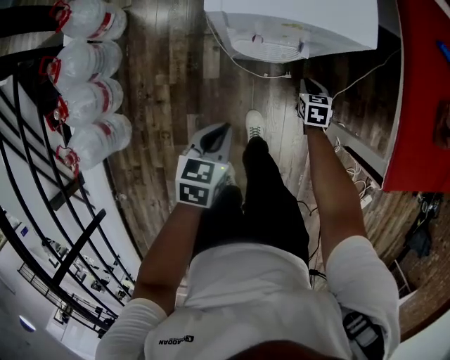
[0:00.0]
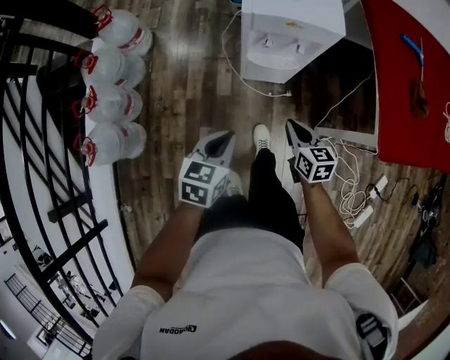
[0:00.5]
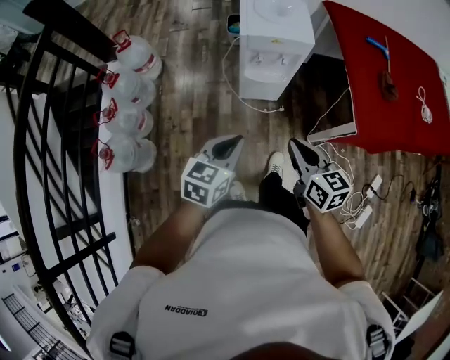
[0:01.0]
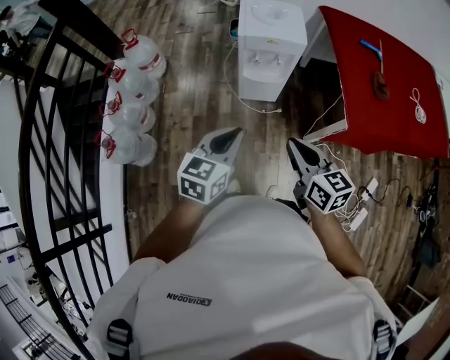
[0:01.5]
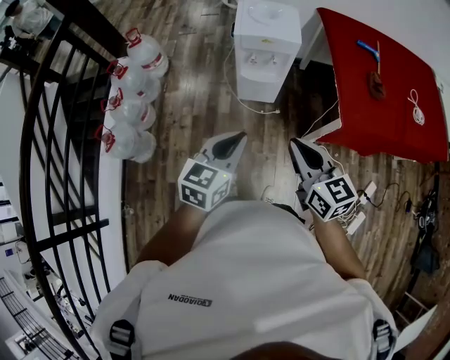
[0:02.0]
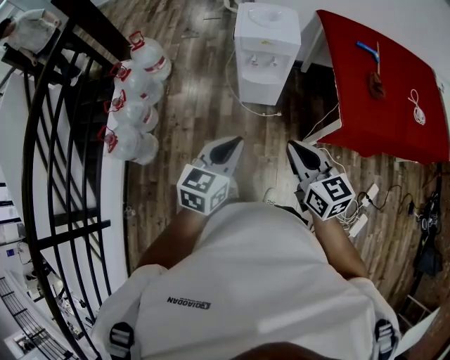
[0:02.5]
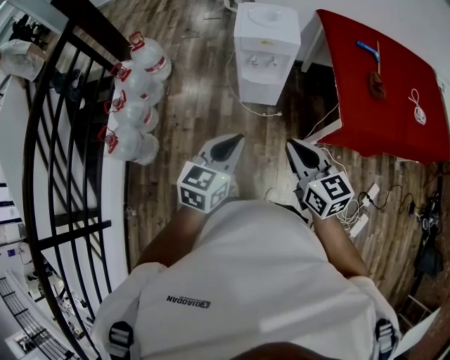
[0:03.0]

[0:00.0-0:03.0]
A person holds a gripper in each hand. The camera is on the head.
0.0 to 1.5 s: The right gripper shifts about 60 cm upward and backward, and angles its fingers upward, by about 40 degrees. Meanwhile the left gripper shifts approximately 40 cm upward and backward, and turns by about 30 degrees.
1.5 to 3.0 s: The right gripper moves roughly 5 cm, while the left gripper is displaced backward by roughly 5 cm.

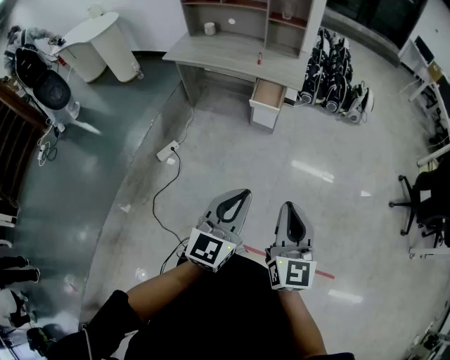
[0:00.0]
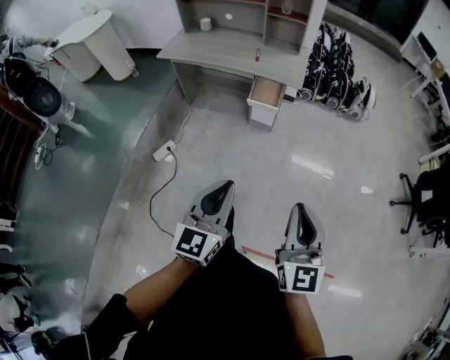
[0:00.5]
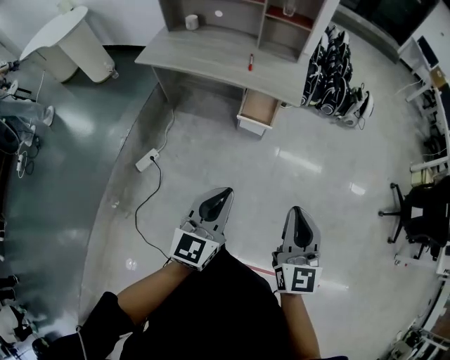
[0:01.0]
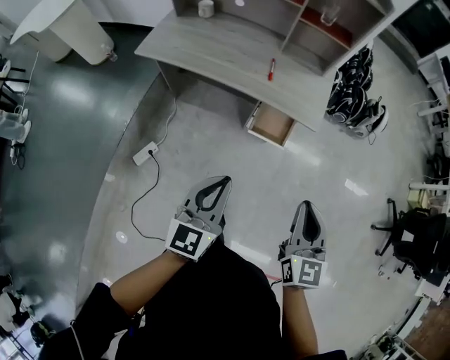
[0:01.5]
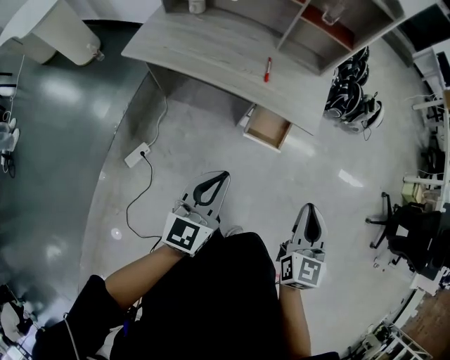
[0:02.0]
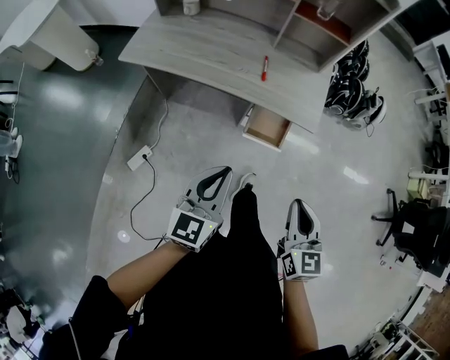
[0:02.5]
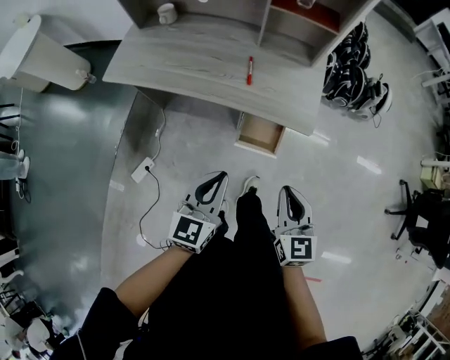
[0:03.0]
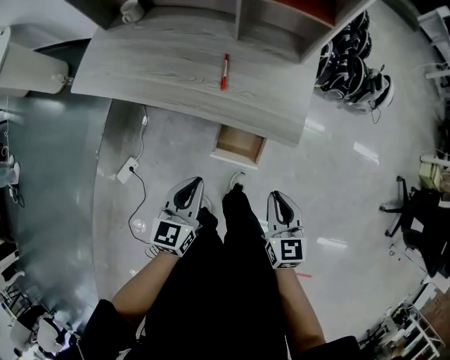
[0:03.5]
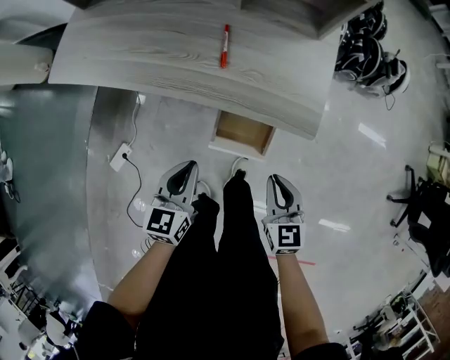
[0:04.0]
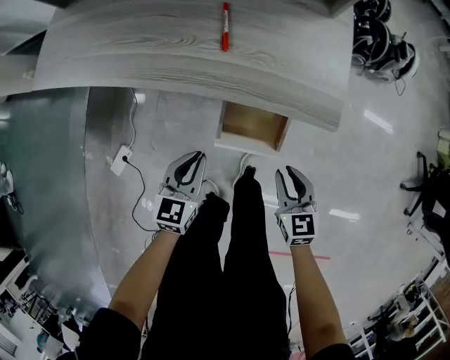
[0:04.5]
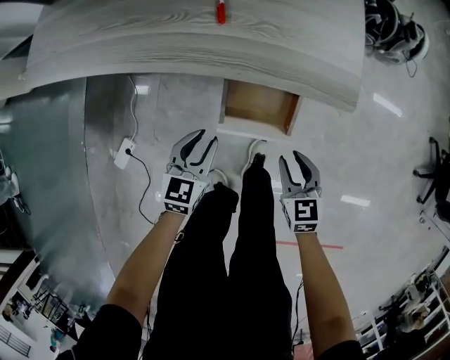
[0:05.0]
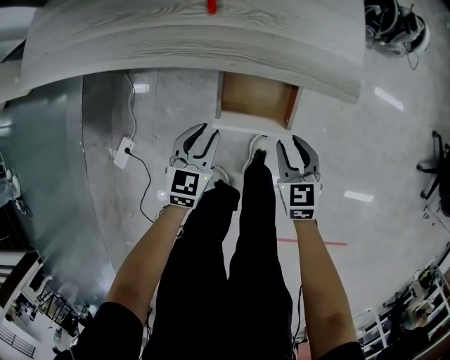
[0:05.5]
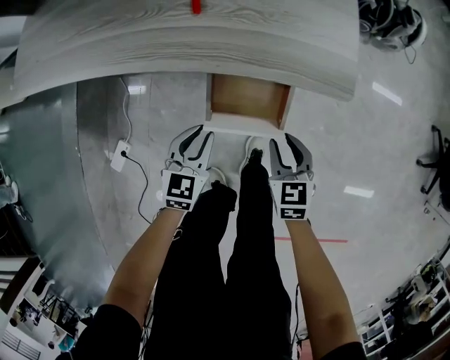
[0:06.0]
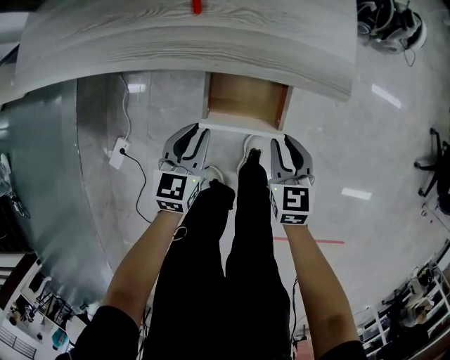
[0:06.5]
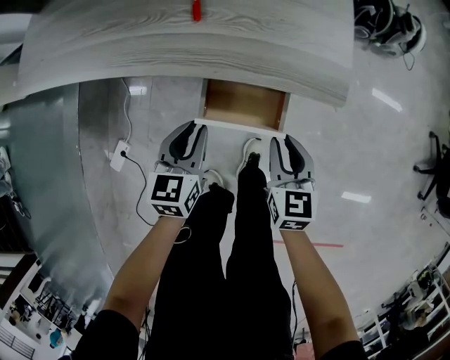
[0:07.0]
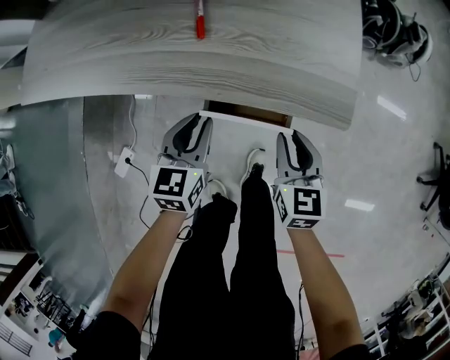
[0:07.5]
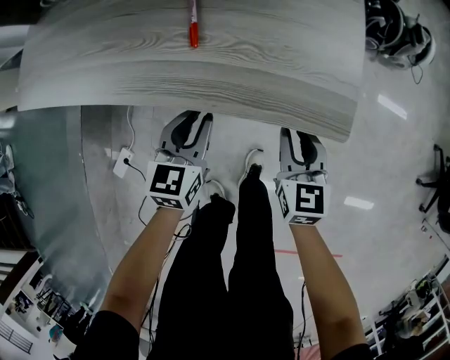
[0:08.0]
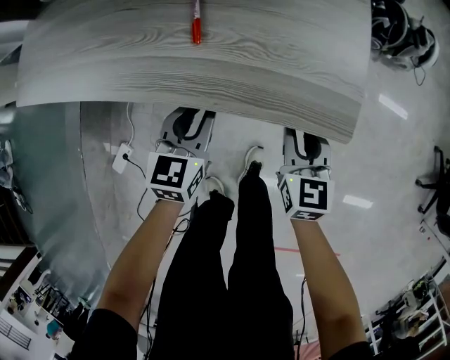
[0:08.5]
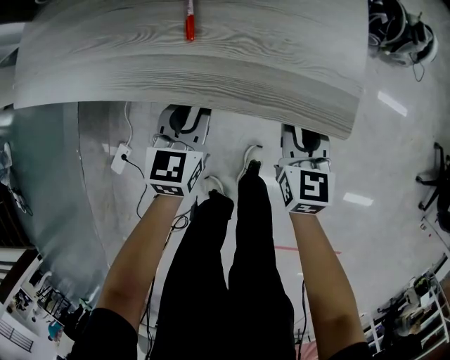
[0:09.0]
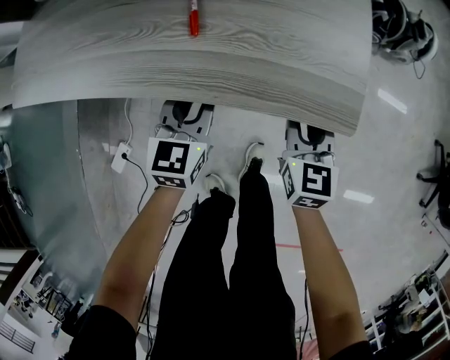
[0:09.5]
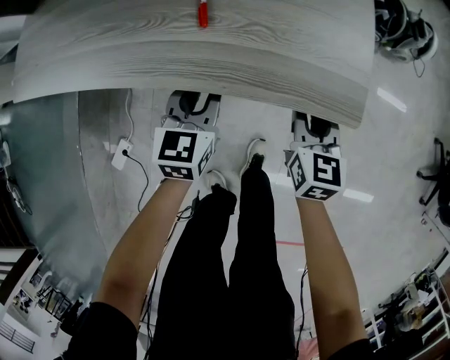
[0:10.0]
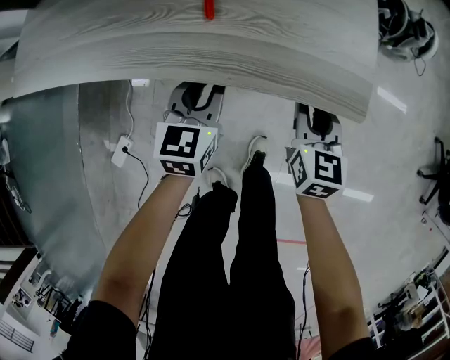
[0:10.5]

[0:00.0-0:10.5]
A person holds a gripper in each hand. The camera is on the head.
0.0 to 2.0 s: The pair of grippers is taken forward, about 50 cm. The right gripper turns by some 20 degrees.
2.0 to 4.0 s: Both grippers travel together downward and forward, about 30 cm. The right gripper changes its angle by some 20 degrees. Meanwhile the left gripper changes its angle by some 20 degrees.
4.0 to 6.5 s: Both grippers move downward, approximately 15 cm.
6.5 to 8.5 s: The two grippers go roughly 15 cm forward.
8.5 to 10.5 s: The grippers move only a little.

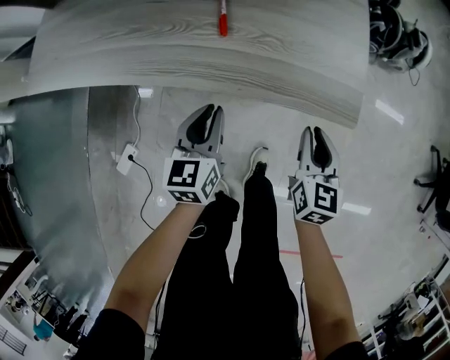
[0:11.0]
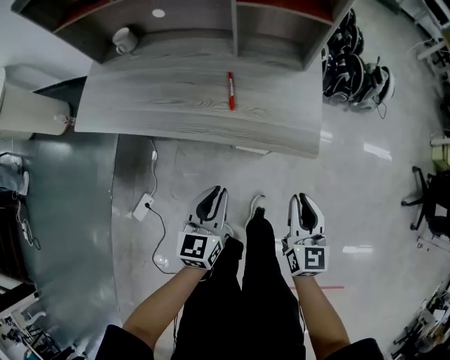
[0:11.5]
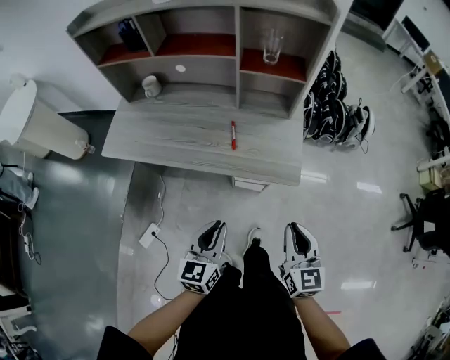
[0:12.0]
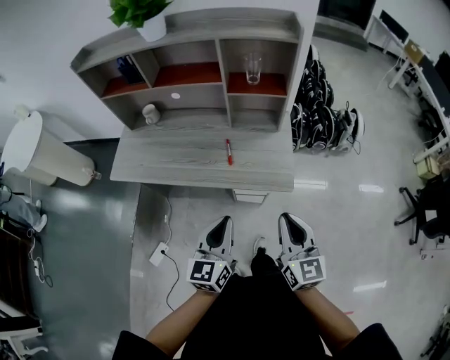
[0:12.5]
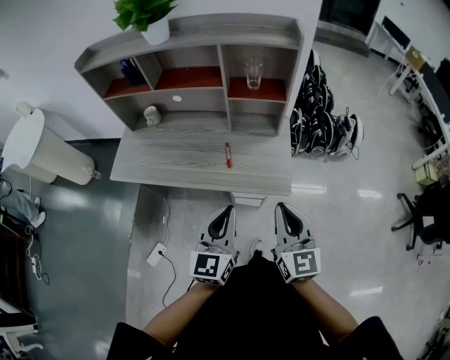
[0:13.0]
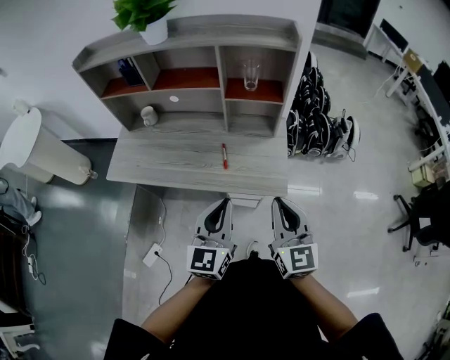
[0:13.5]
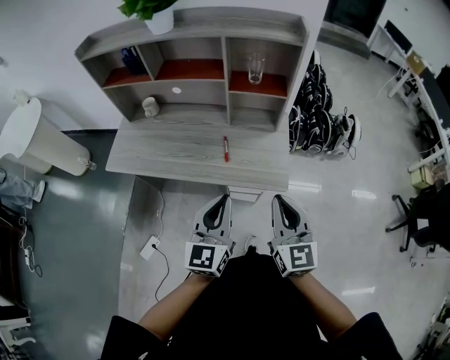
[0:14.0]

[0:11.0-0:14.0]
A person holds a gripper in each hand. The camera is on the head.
11.0 to 12.5 s: The grippers both shift upward by about 40 cm. The right gripper swivels approximately 30 degrees.
12.5 to 14.0 s: The right gripper moves roughly 5 cm. Meanwhile the left gripper moves upward, about 5 cm.

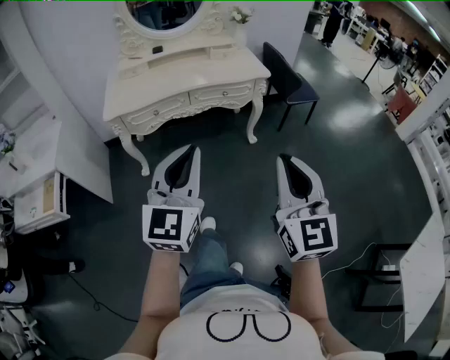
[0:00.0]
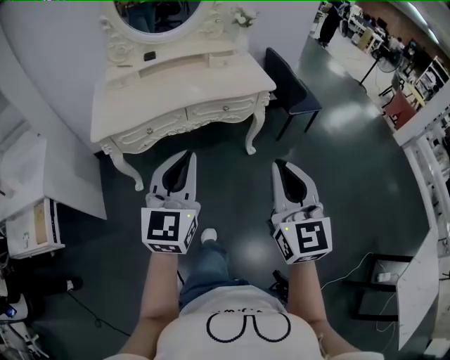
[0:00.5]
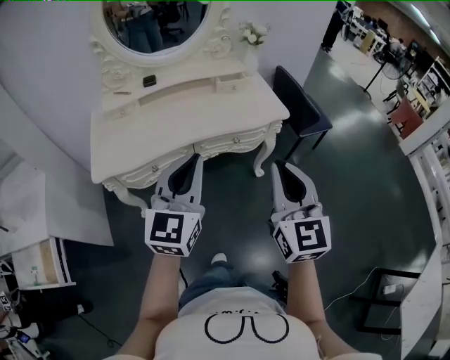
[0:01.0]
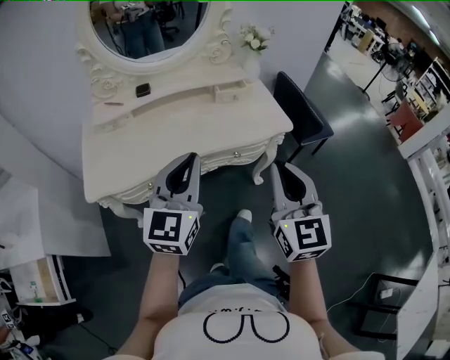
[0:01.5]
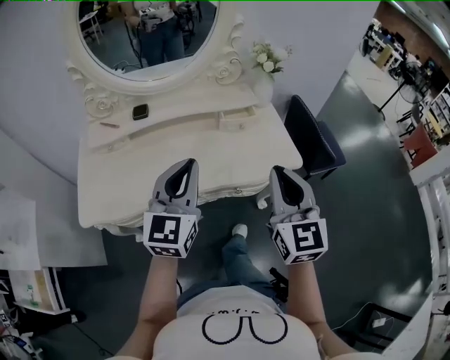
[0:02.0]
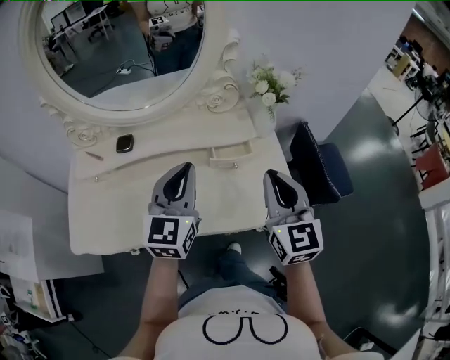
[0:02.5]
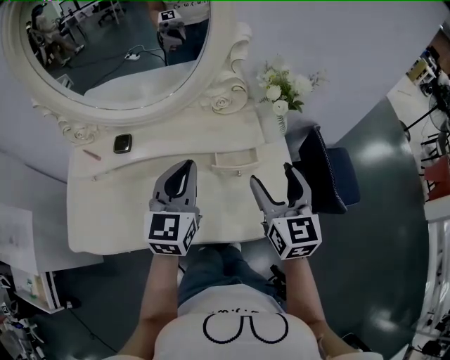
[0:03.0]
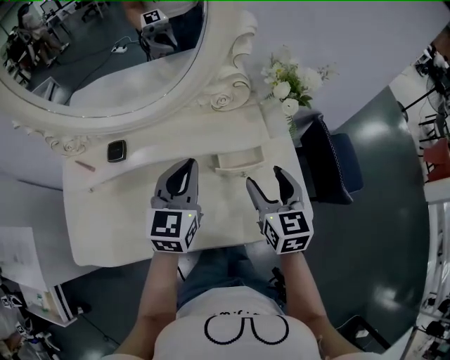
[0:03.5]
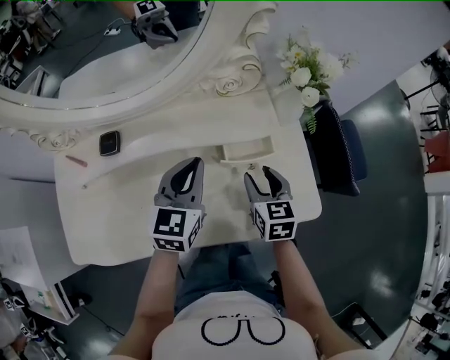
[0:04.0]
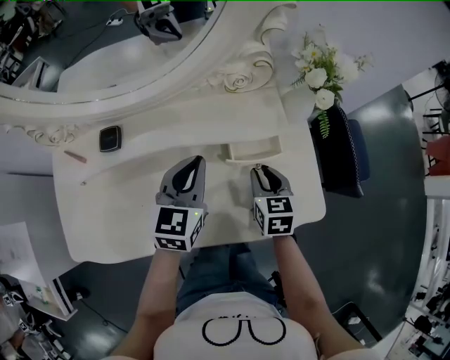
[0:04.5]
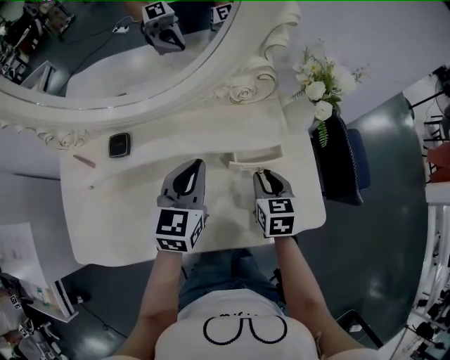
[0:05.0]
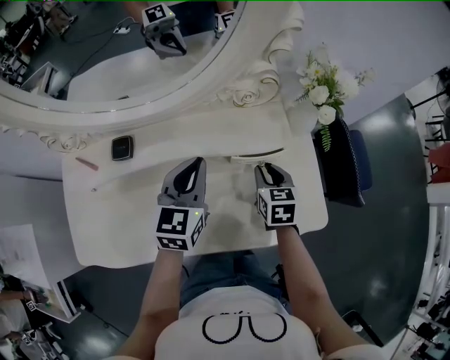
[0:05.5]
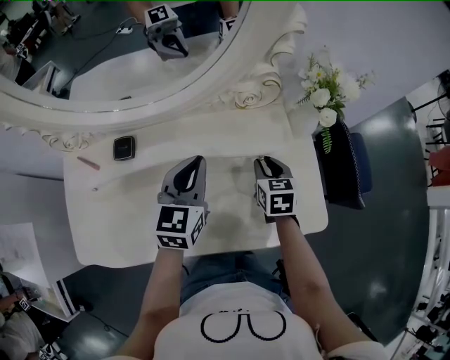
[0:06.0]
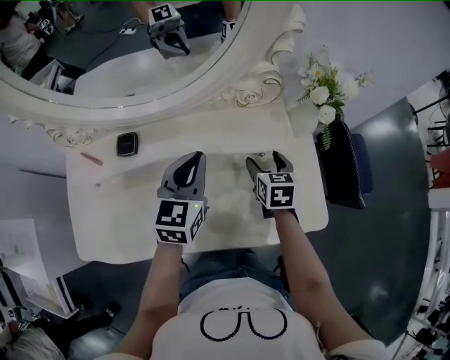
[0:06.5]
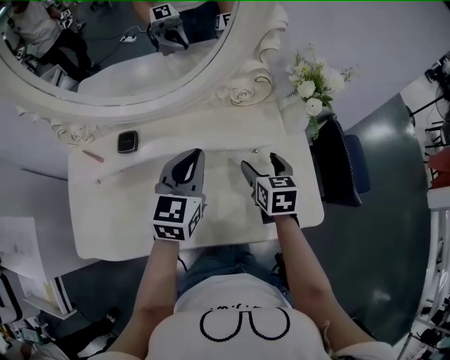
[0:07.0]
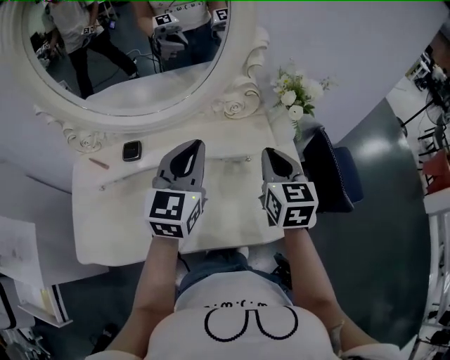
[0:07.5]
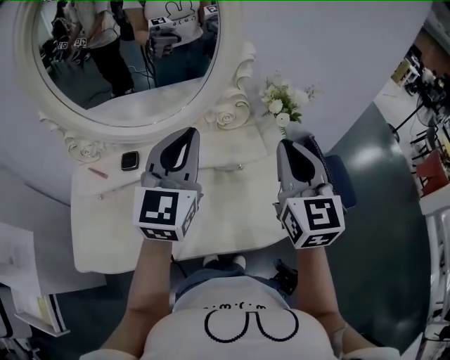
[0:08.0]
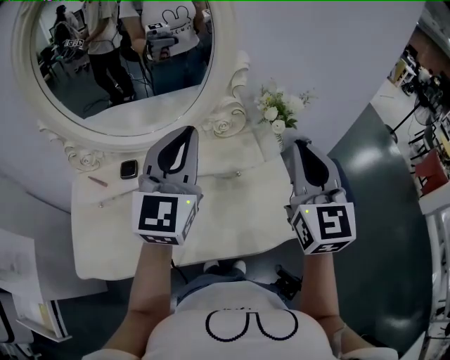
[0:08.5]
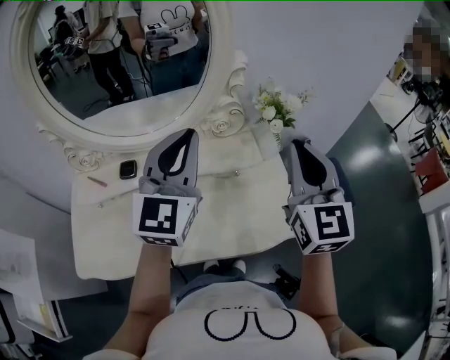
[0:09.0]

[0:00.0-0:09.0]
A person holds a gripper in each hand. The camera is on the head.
0.0 to 2.0 s: Both grippers are carried forward, roughly 60 cm.
2.0 to 4.5 s: The two grippers go roughly 40 cm forward and downward. The left gripper changes its angle by about 20 degrees. Meanwhile the right gripper points its fingers about 40 degrees further downward, and opens, then closes once more.
4.5 to 7.0 s: Both grippers move upward, some 5 cm. The right gripper opens its fingers.
7.0 to 9.0 s: The right gripper goes roughly 35 cm upward, angles its fingers upward, by about 40 degrees, and closes its fingers. The left gripper moves upward, about 20 cm, and swivels roughly 30 degrees.

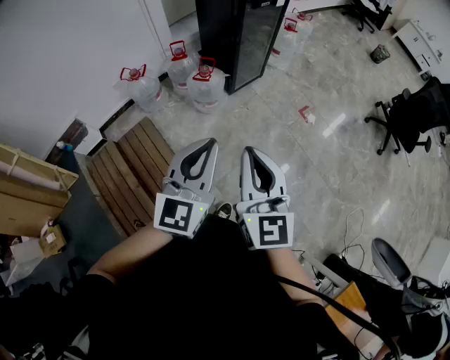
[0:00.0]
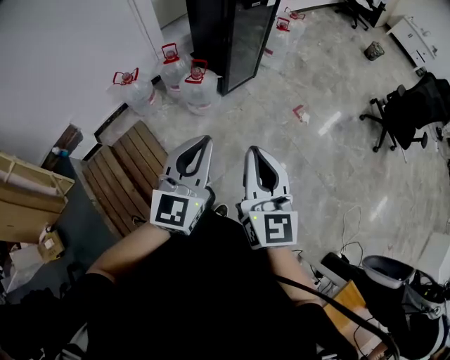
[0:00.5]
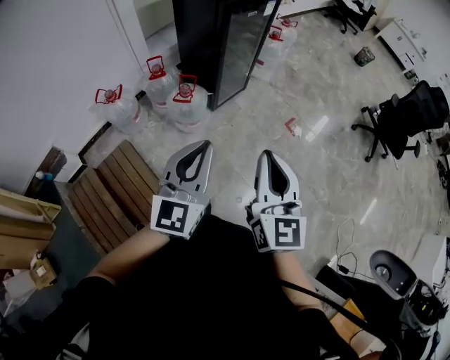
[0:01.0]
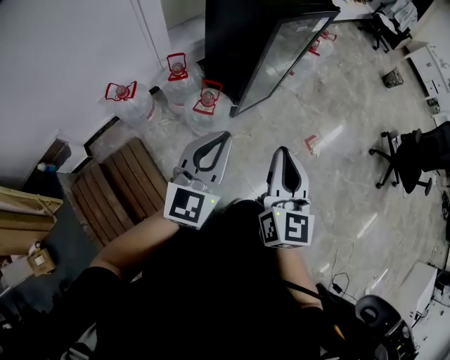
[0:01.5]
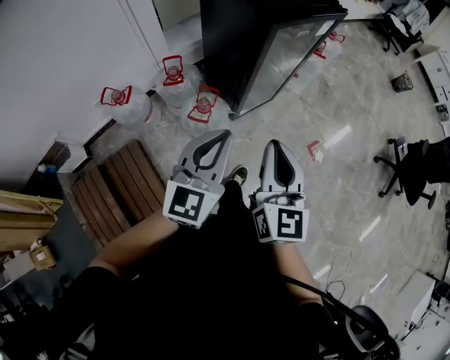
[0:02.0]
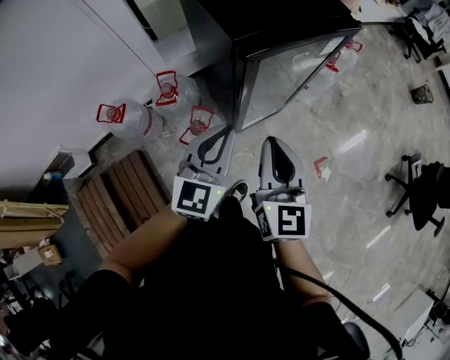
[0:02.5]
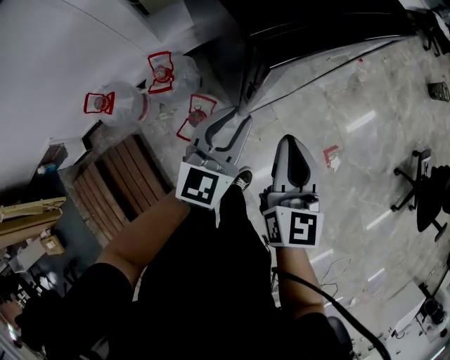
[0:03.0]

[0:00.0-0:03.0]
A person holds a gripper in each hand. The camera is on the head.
0.0 to 1.5 s: Both grippers move forward, approximately 35 cm.
1.5 to 3.0 s: Both grippers move forward and downward, roughly 40 cm.
